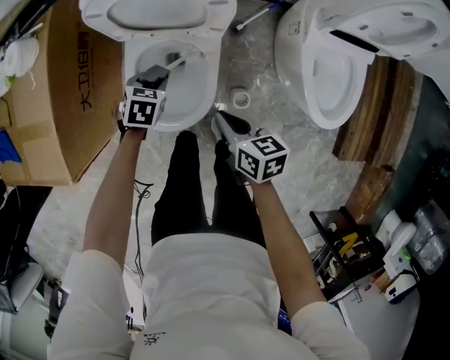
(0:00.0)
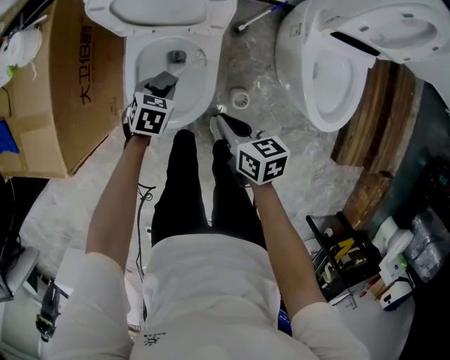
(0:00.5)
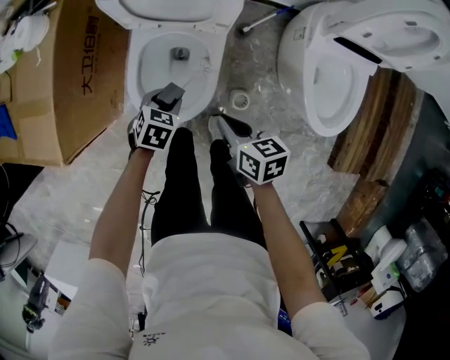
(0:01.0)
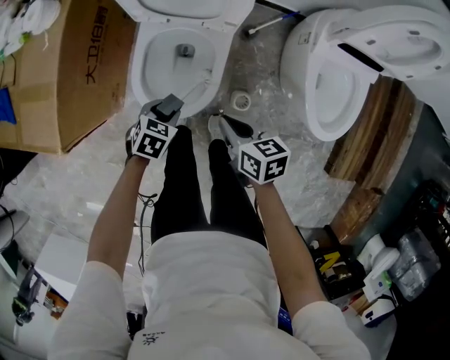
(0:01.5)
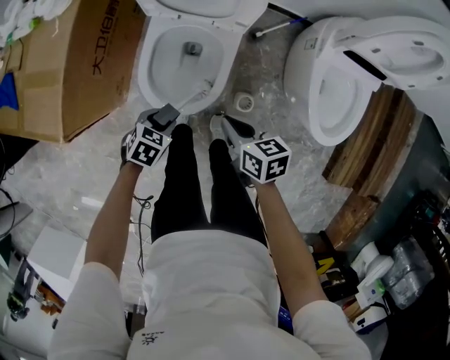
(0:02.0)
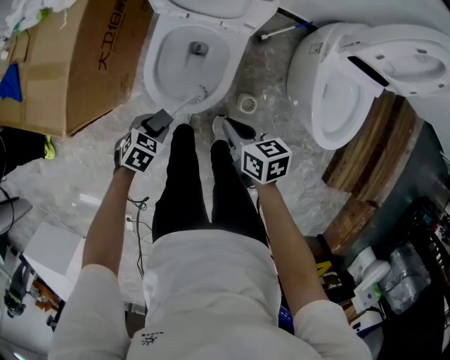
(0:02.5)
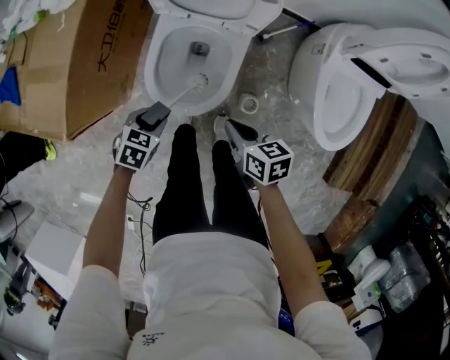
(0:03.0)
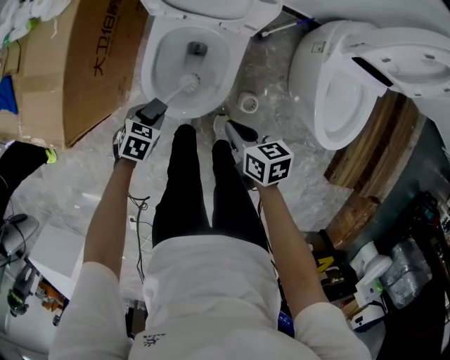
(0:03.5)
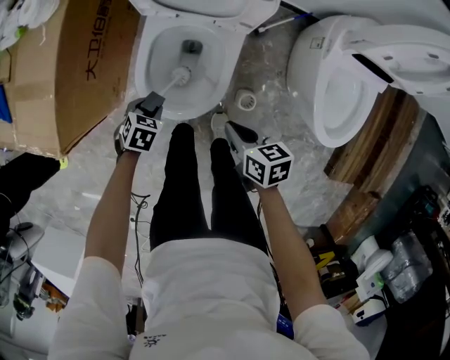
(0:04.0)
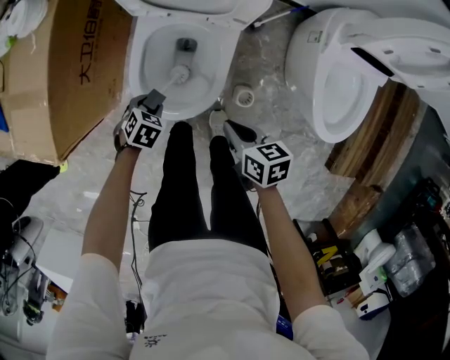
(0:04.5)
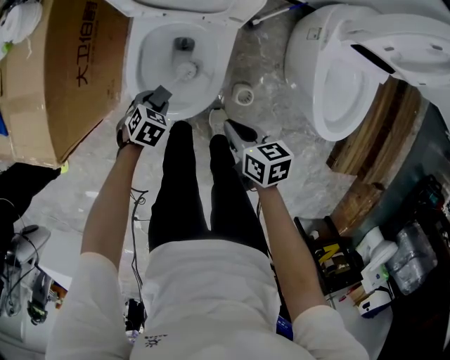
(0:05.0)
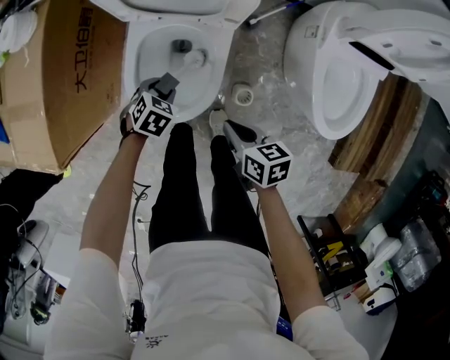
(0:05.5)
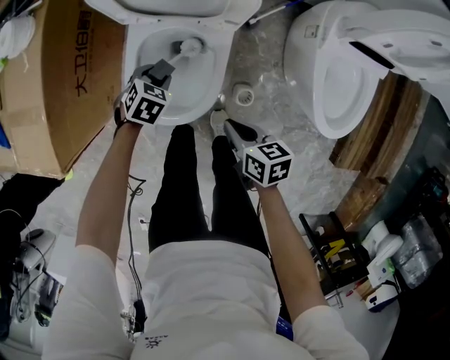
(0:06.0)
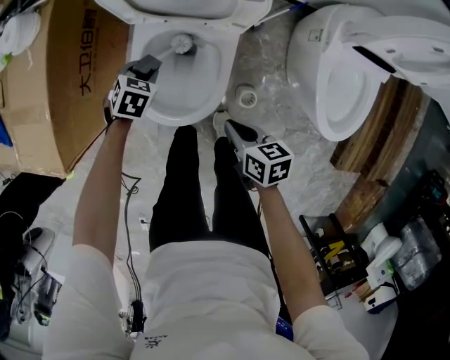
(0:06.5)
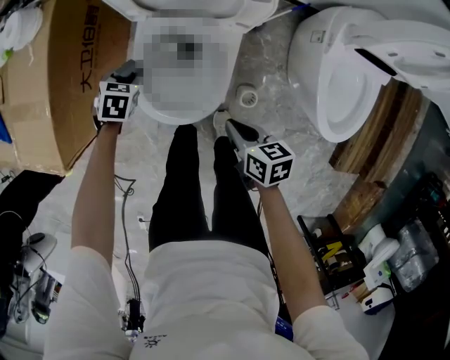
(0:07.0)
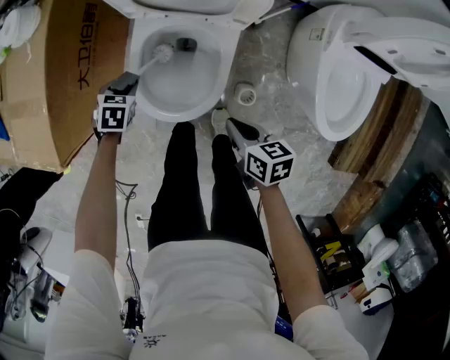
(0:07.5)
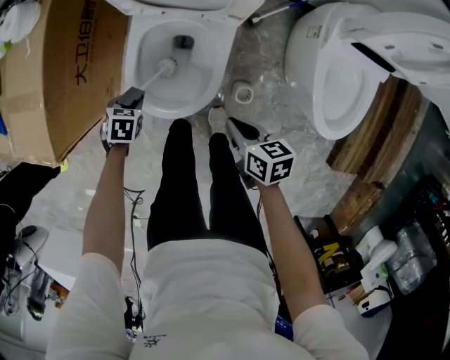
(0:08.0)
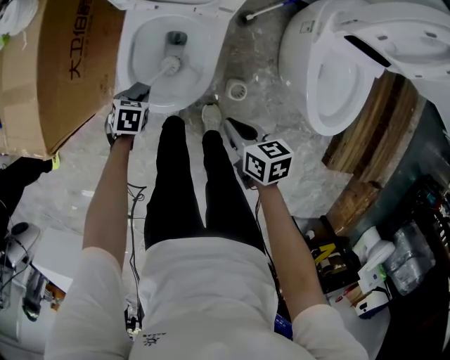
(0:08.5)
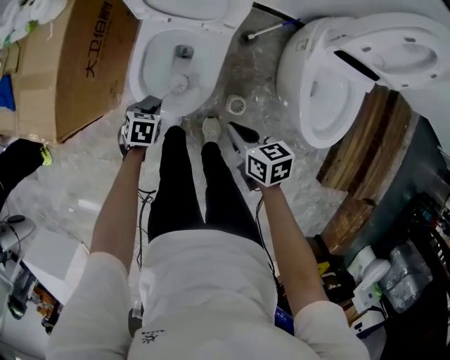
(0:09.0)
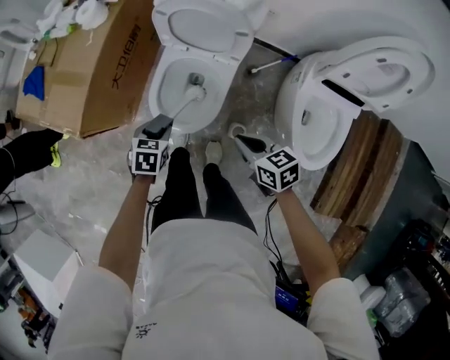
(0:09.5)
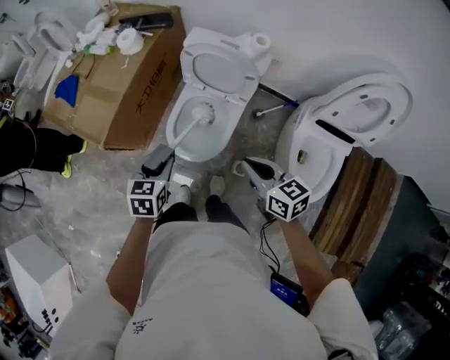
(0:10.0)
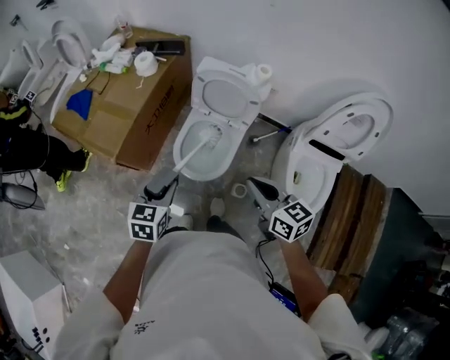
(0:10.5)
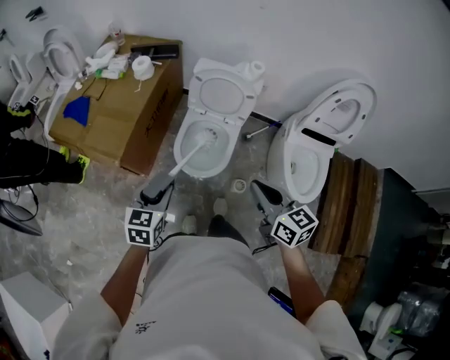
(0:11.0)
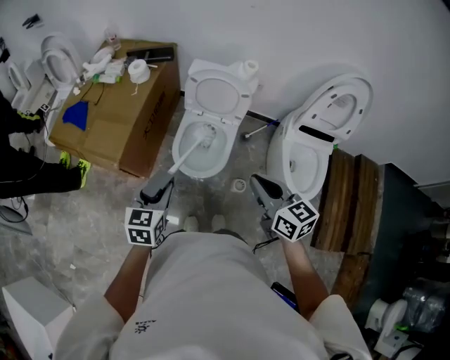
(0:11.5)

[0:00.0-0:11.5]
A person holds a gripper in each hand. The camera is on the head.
0:00.0 to 0:02.0: The left gripper shifts some 20 cm backward; the right gripper shifts about 5 cm backward.
0:02.0 to 0:04.0: The left gripper moves some 10 cm.
0:04.0 to 0:06.0: The left gripper ends up about 15 cm from where it was.
0:06.0 to 0:07.5: The left gripper is displaced to the left by approximately 15 cm.
0:07.5 to 0:09.5: The grippers both shift upward by about 20 cm. The right gripper rotates roughly 30 degrees.
0:09.5 to 0:11.5: The right gripper moves upward and backward, roughly 30 cm, and turns by roughly 30 degrees; the left gripper is displaced upward, to the left and backward by some 35 cm, and rotates roughly 30 degrees.

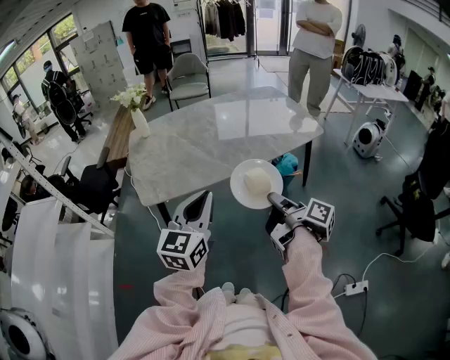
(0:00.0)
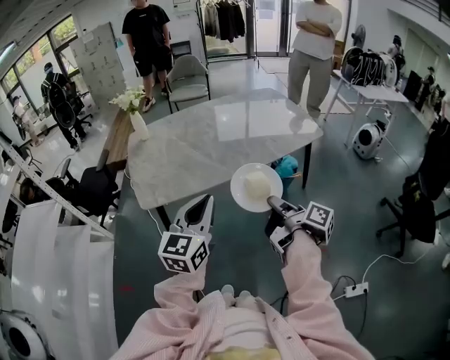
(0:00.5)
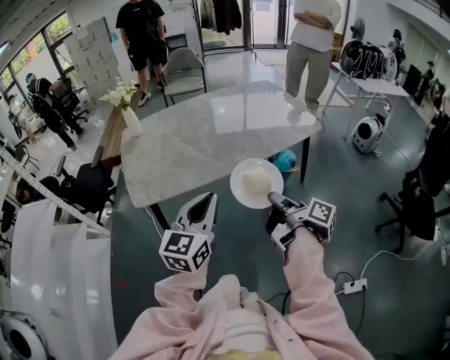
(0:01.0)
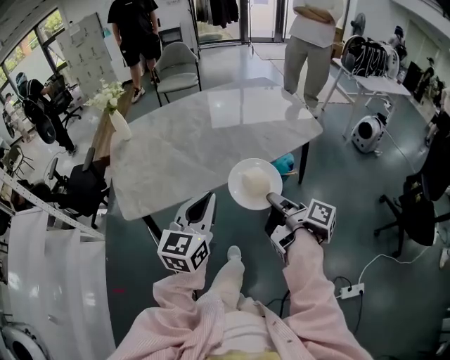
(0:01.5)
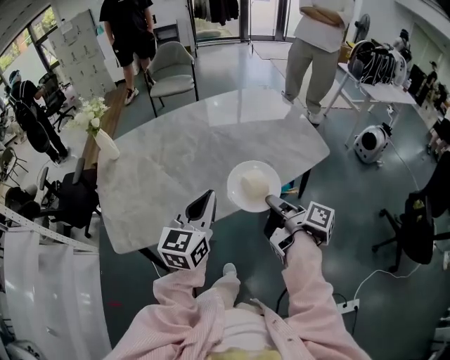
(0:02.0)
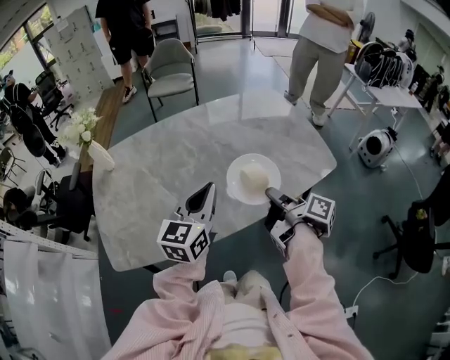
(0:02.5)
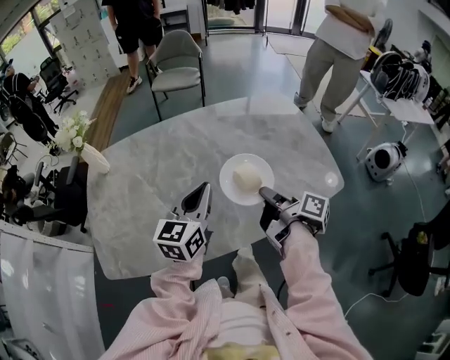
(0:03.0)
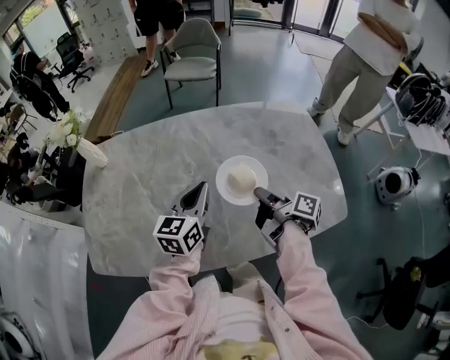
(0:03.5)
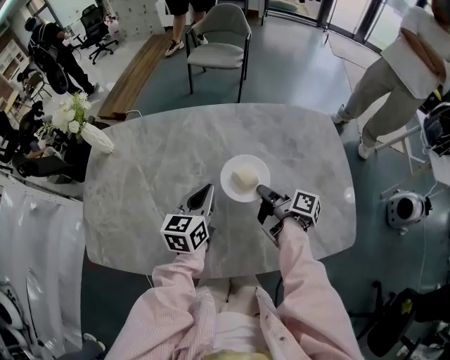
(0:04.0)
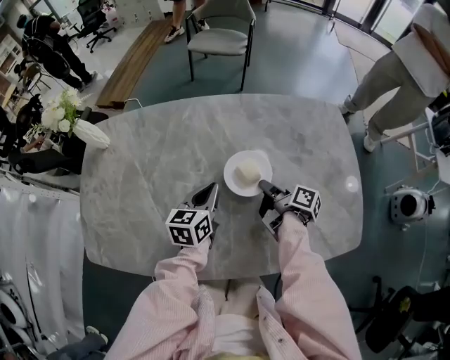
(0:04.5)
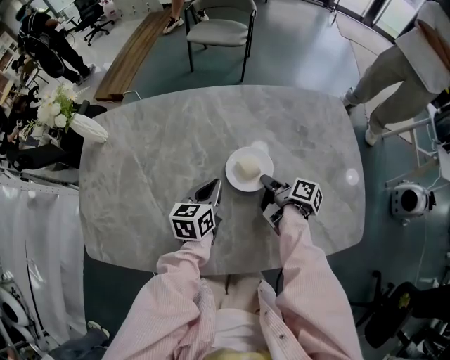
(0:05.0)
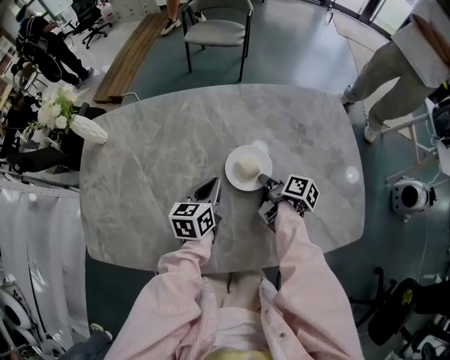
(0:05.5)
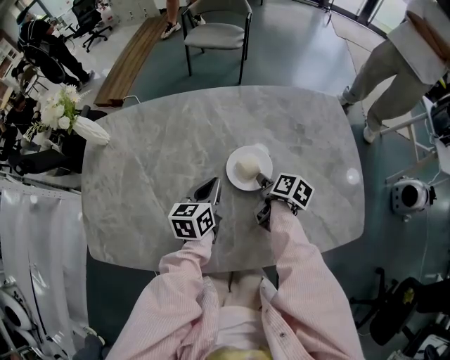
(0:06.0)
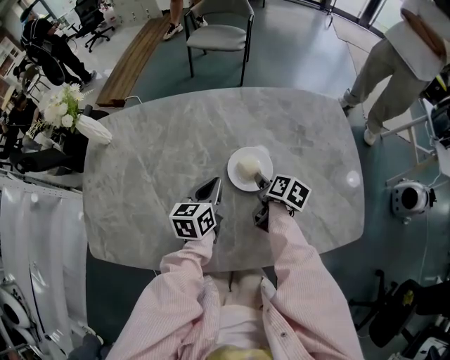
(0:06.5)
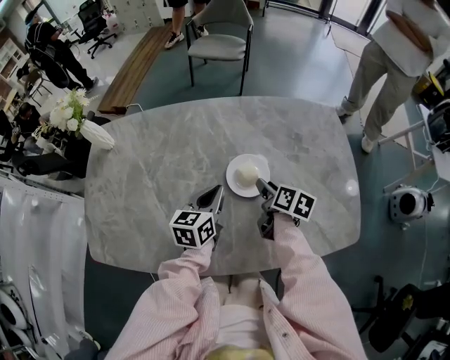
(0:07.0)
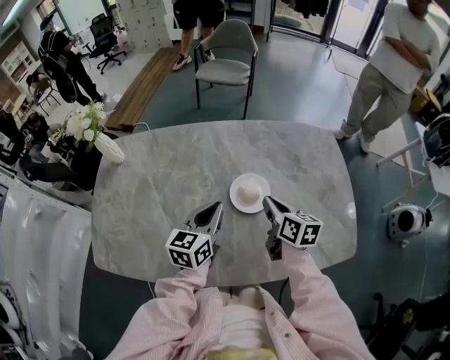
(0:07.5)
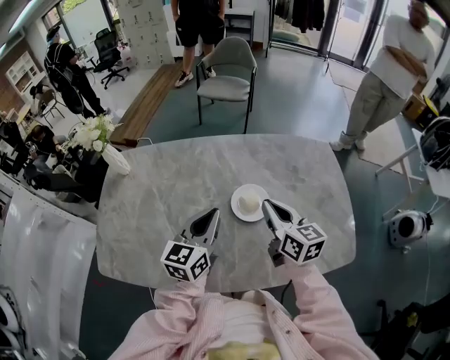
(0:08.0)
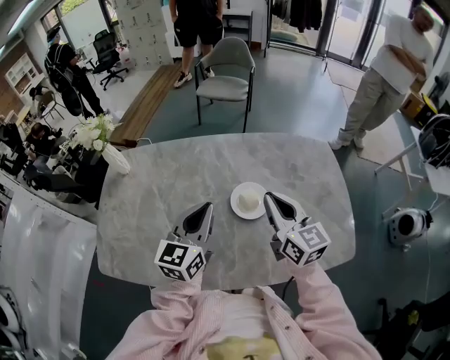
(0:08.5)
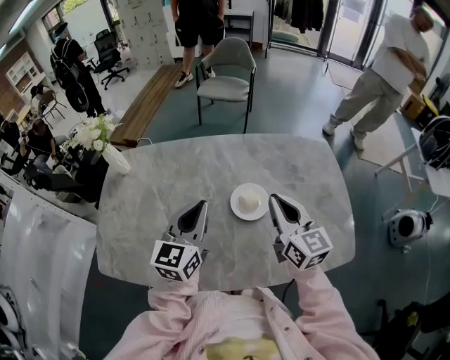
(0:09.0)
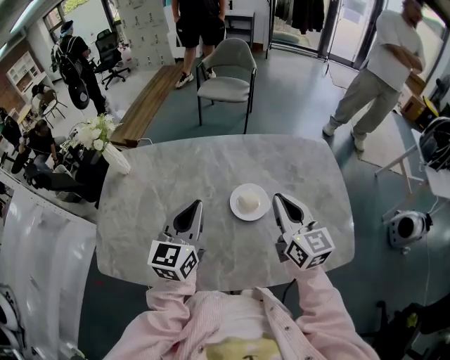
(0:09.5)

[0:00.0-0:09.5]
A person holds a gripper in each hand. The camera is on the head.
0:00.0 to 0:02.0: The left gripper shifts by some 30 cm.
0:02.0 to 0:04.0: The left gripper moves approximately 35 cm, and changes its angle by approximately 30 degrees.
0:04.0 to 0:05.5: The left gripper goes approximately 10 cm downward.
0:05.5 to 0:07.5: The left gripper travels upward by roughly 10 cm.
0:07.5 to 0:09.5: The left gripper heads upward, covering roughly 10 cm.

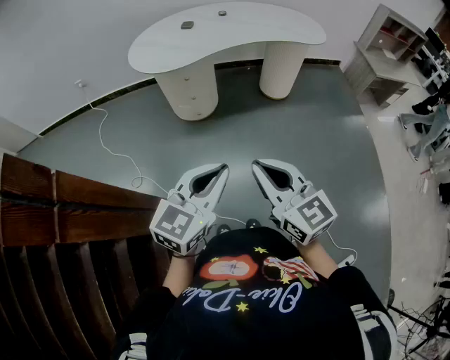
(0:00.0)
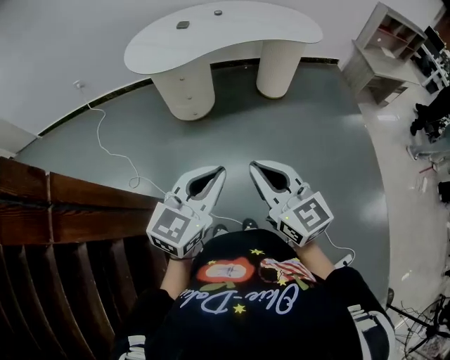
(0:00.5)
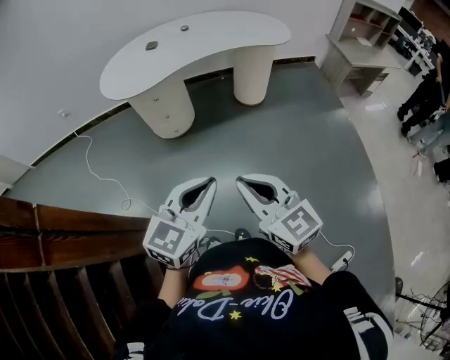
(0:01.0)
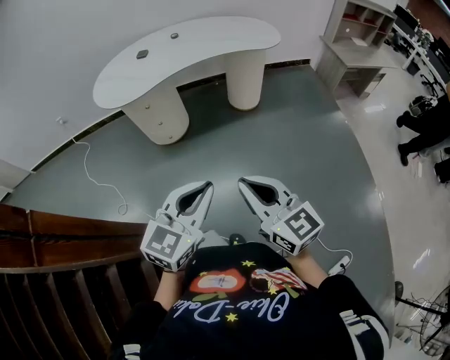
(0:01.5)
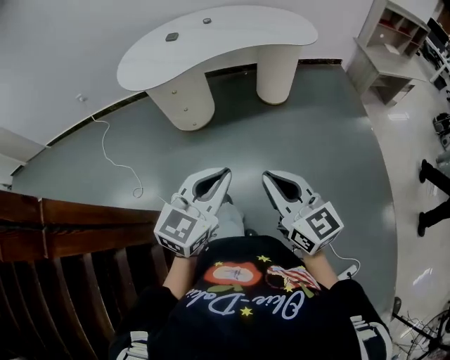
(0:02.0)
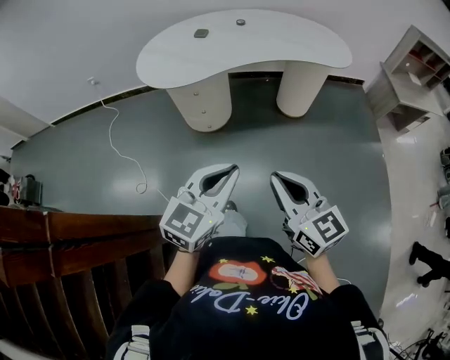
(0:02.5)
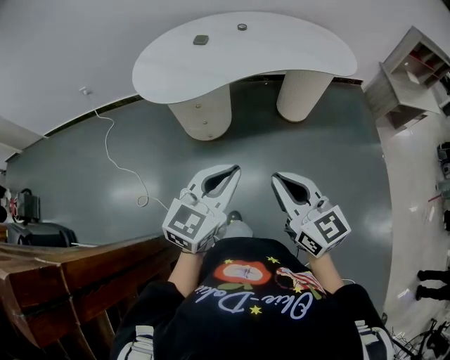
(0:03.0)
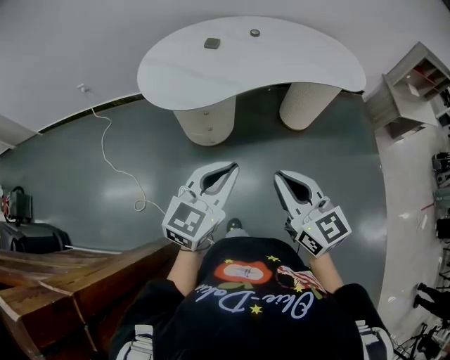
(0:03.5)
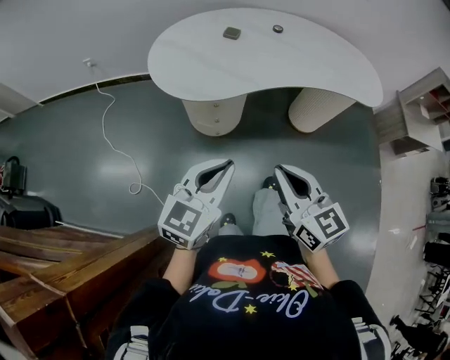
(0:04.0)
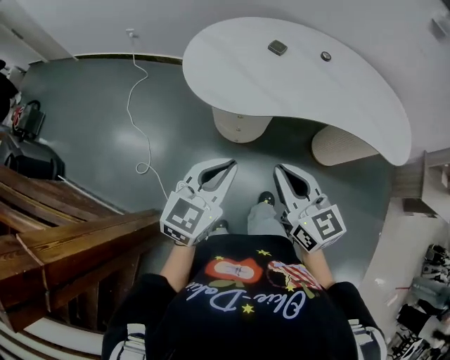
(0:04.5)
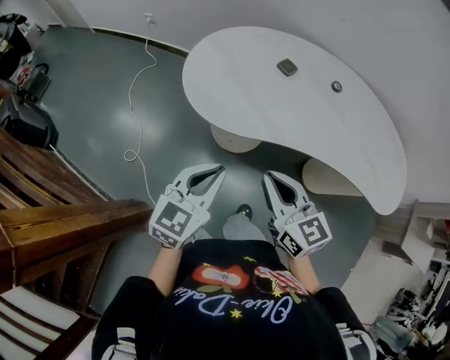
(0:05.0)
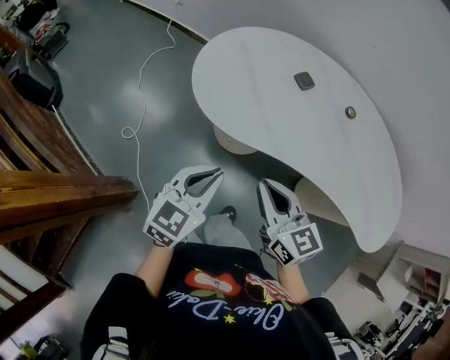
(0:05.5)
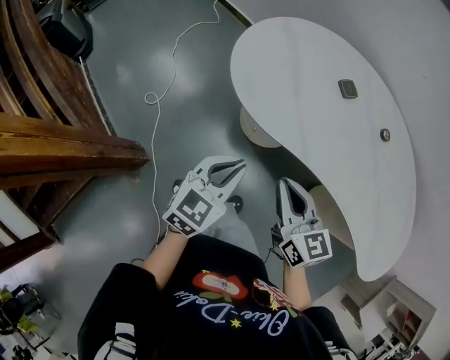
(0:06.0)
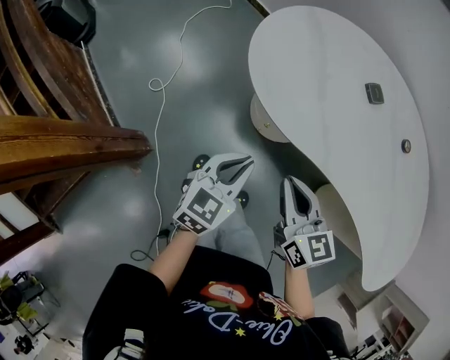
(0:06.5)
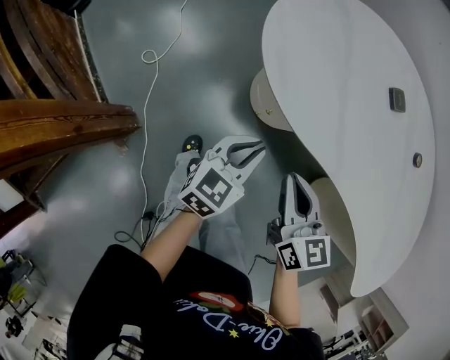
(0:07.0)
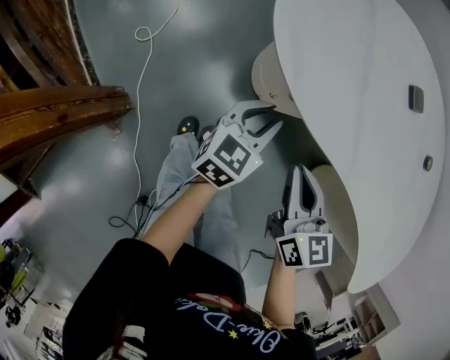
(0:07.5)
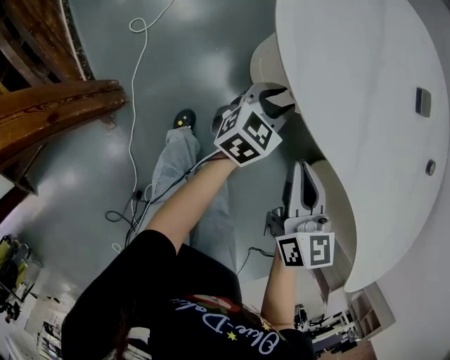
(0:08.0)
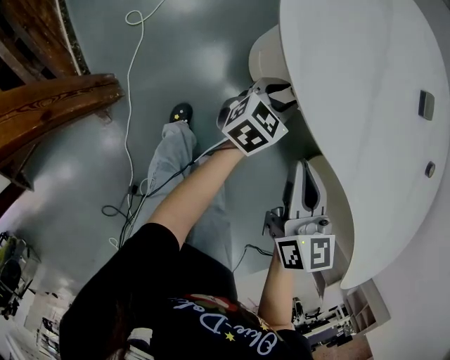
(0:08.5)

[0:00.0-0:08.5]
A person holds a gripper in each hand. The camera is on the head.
0:00.0 to 0:02.0: The left gripper moves to the right and forward, about 10 cm, while the right gripper goes some 15 cm to the right.
0:02.0 to 0:04.0: The two grippers go roughly 35 cm forward and to the left.
0:04.0 to 0:06.5: The right gripper ends up about 30 cm from where it was, and rotates some 40 degrees. Meanwhile the left gripper shifts about 20 cm downward, and swivels about 50 degrees.
0:06.5 to 0:08.5: The right gripper travels downward by roughly 10 cm. The left gripper is displaced downward and forward by roughly 25 cm, and opens.
